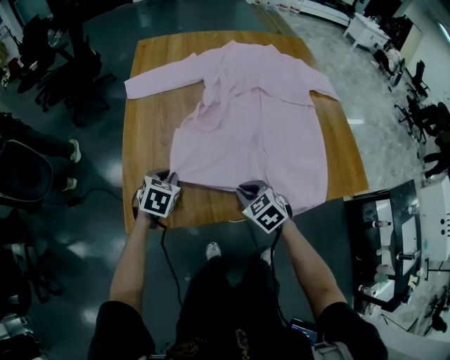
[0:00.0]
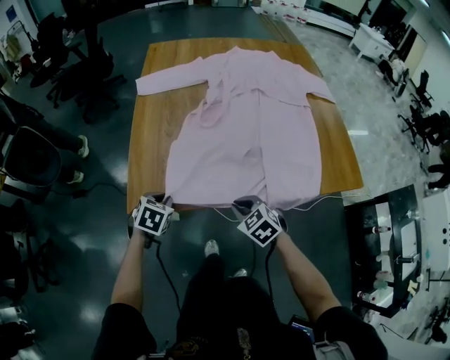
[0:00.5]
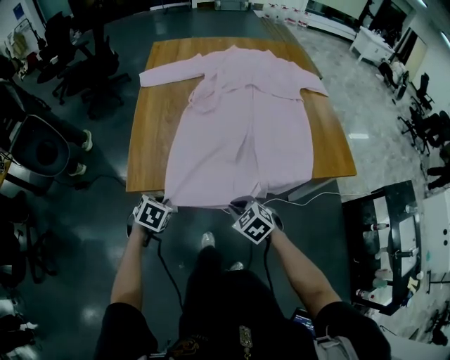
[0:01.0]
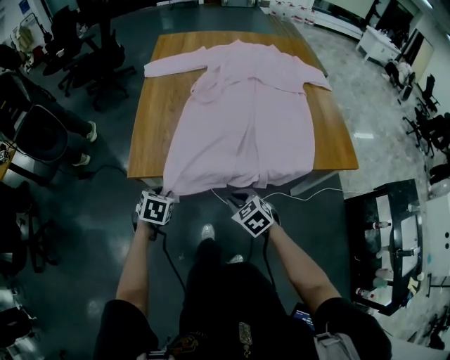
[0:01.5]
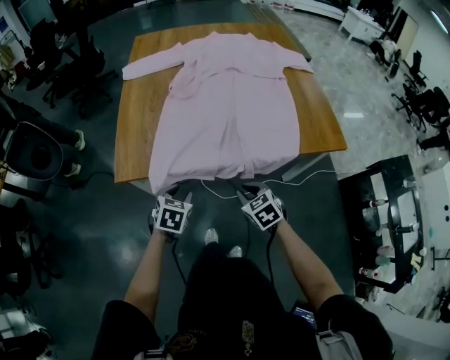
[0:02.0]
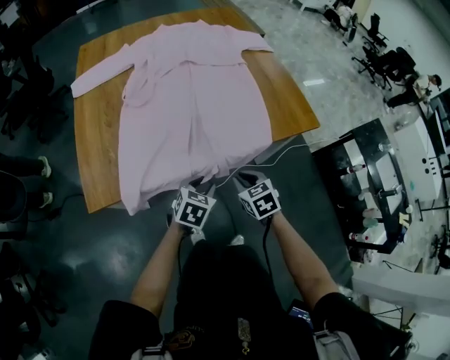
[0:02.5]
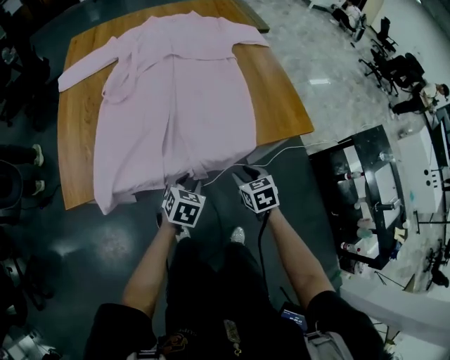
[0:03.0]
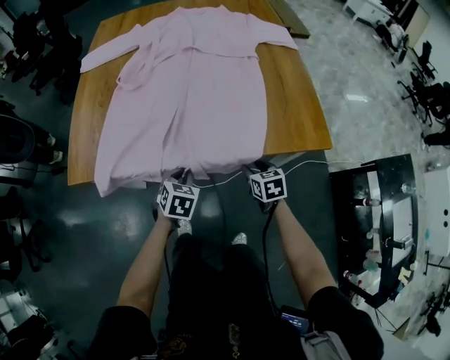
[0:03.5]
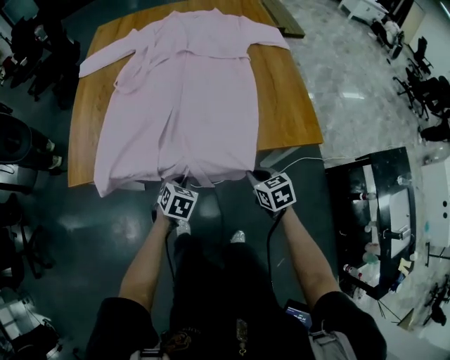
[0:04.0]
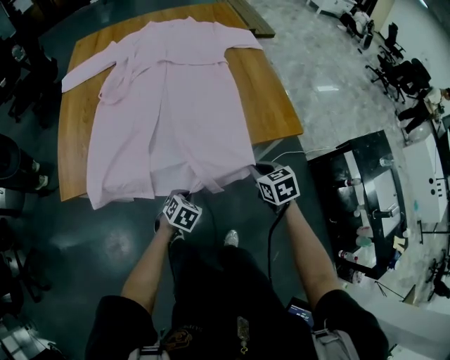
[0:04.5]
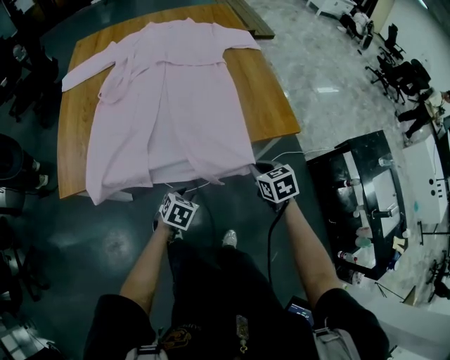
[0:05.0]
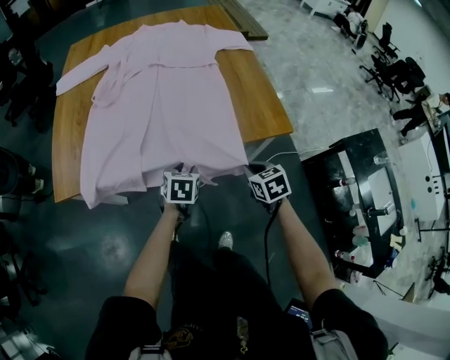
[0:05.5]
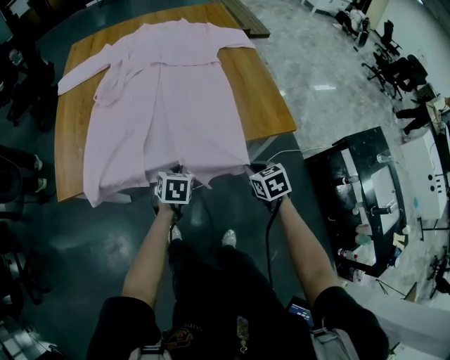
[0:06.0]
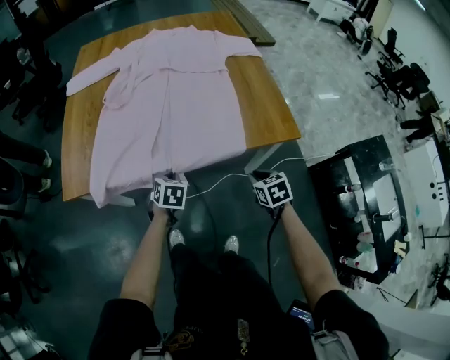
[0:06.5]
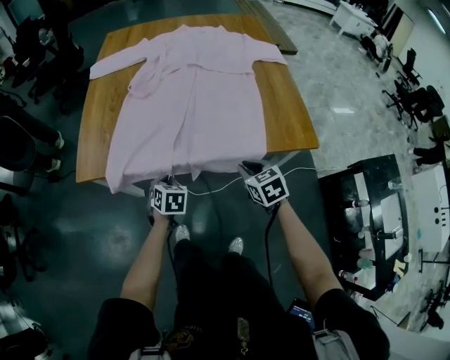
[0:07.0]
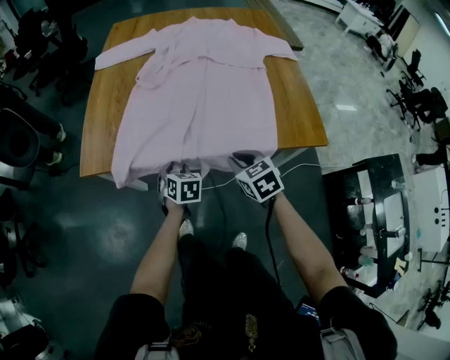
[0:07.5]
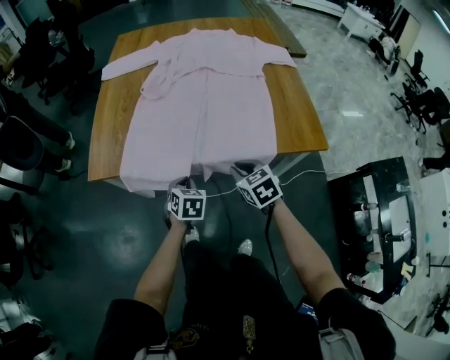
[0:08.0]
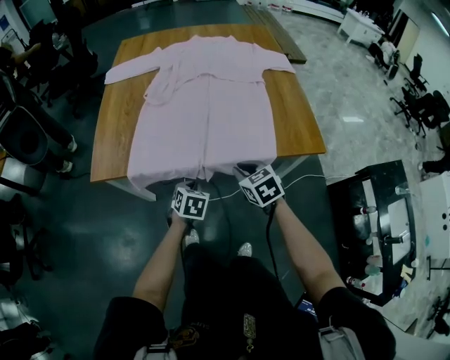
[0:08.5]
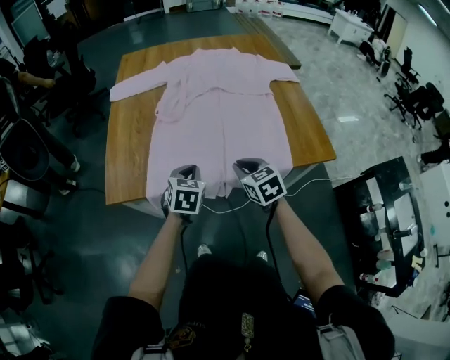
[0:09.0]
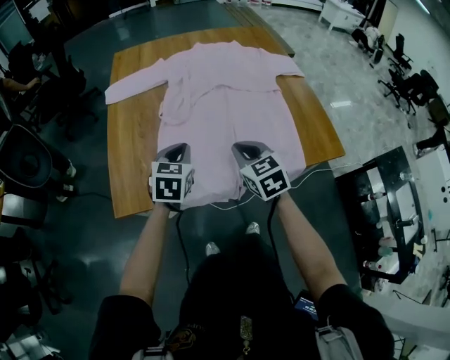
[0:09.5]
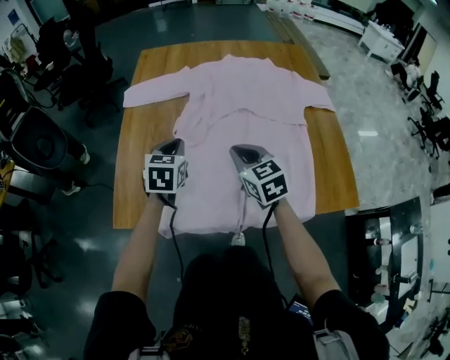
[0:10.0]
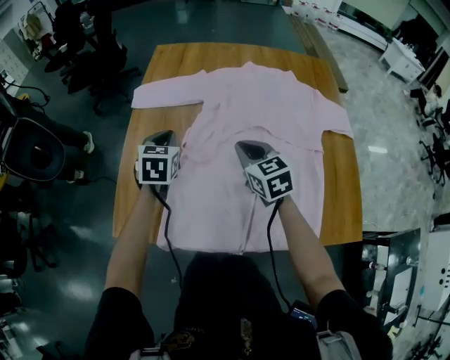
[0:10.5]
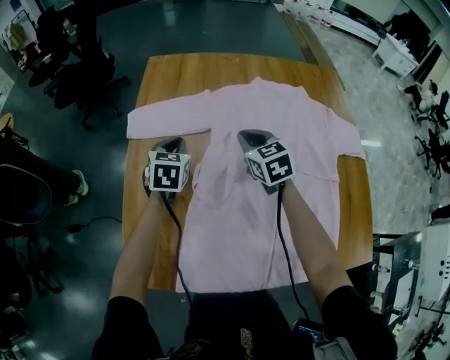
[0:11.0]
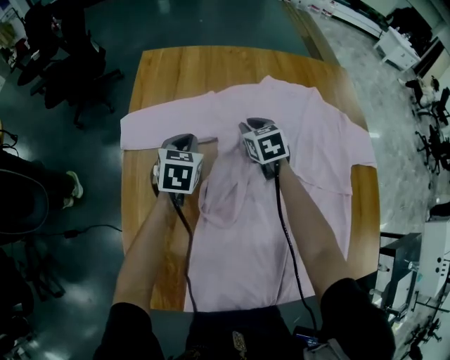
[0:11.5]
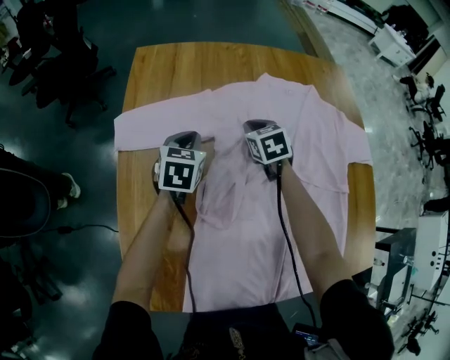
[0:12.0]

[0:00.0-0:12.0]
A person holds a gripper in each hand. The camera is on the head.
0:00.0 to 0:02.0: Both grippers move backward, about 25 cm. The left gripper opens up.
0:02.0 to 0:04.0: The right gripper shifts by roughly 25 cm, and opens, then closes again. Meanwhile the left gripper moves roughly 25 cm, and closes.
0:04.0 to 0:06.0: The right gripper travels to the right by roughly 5 cm, while the left gripper moves about 5 cm backward and comes back, and opens, then closes again.
0:06.0 to 0:08.0: Both grippers travel together to the left, roughly 15 cm. The left gripper opens, then closes once more.
0:08.0 to 0:10.0: The two grippers go about 30 cm forward and upward.
0:10.0 to 0:12.0: The grippers both shift forward by some 35 cm. The right gripper changes its angle by approximately 20 degrees.

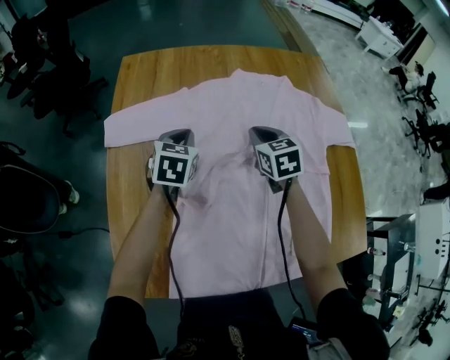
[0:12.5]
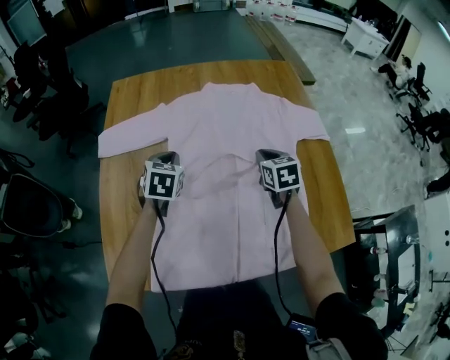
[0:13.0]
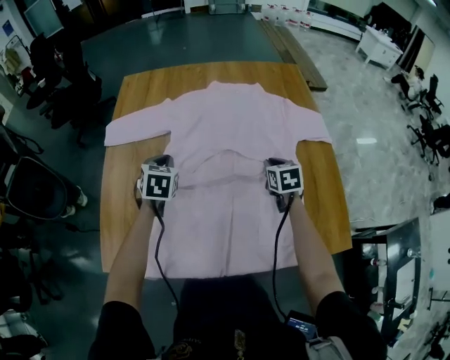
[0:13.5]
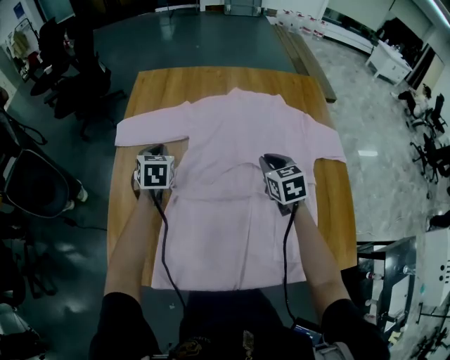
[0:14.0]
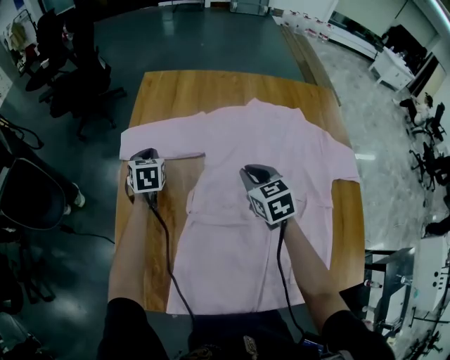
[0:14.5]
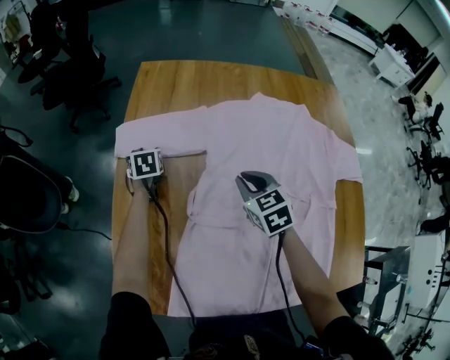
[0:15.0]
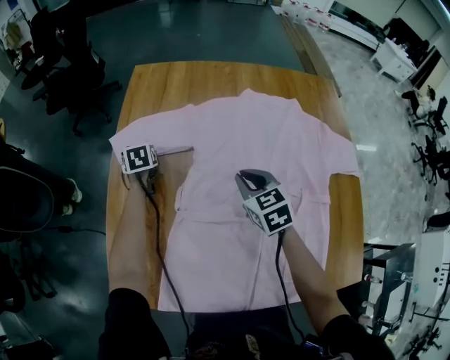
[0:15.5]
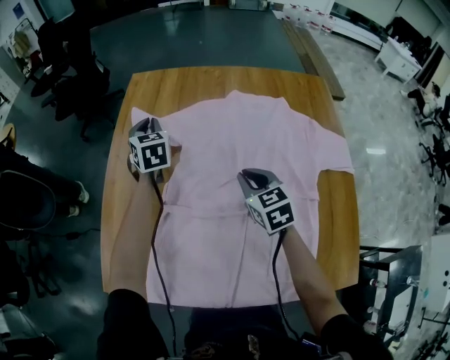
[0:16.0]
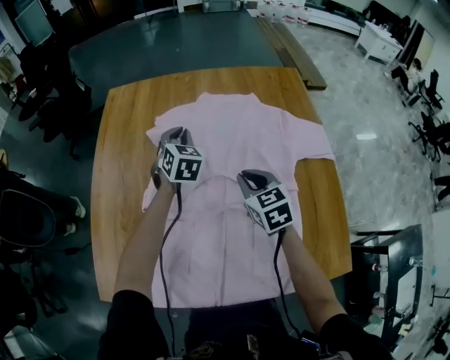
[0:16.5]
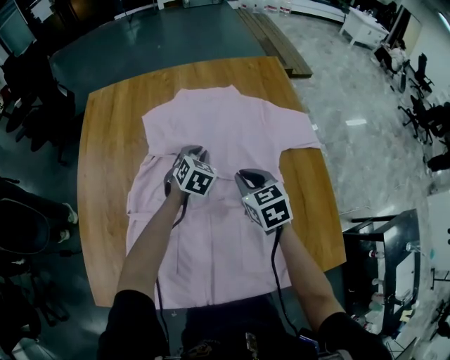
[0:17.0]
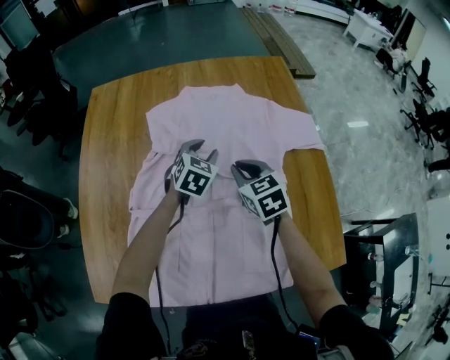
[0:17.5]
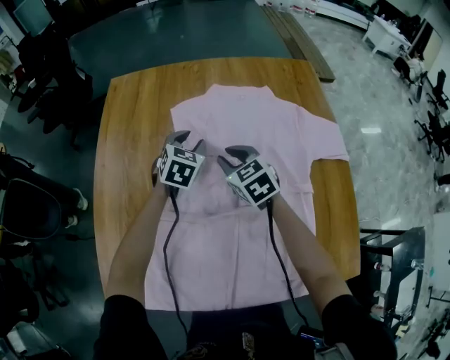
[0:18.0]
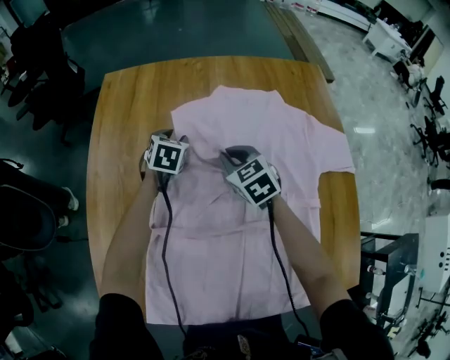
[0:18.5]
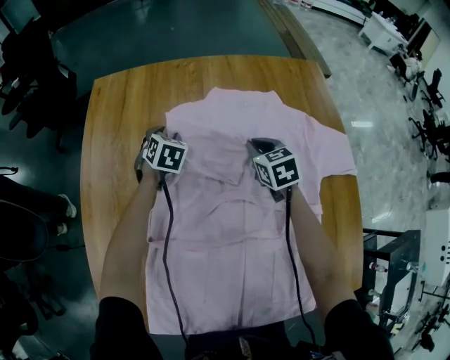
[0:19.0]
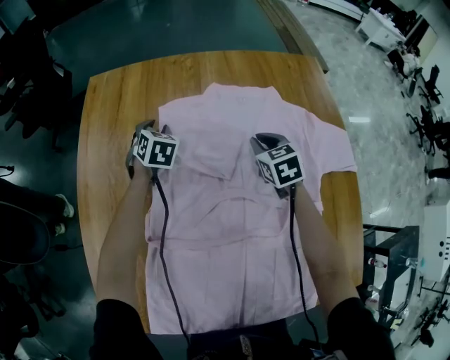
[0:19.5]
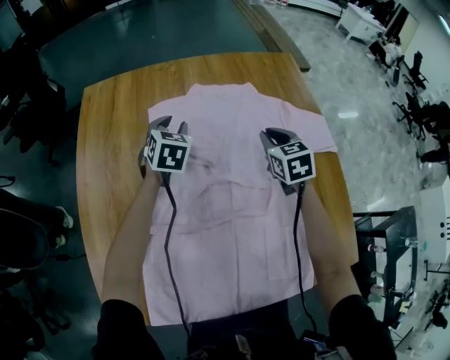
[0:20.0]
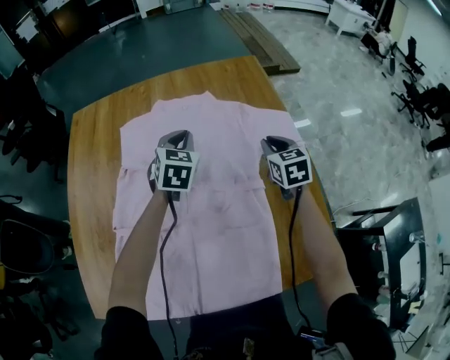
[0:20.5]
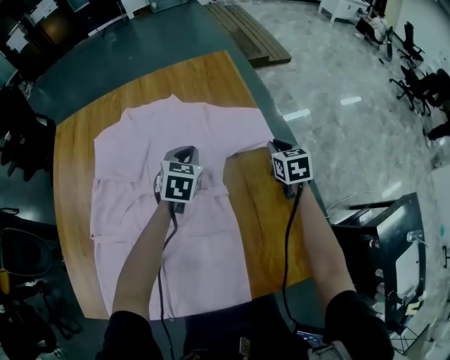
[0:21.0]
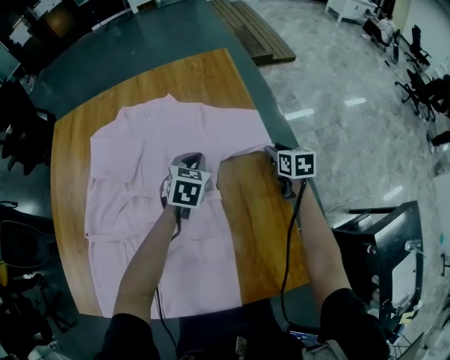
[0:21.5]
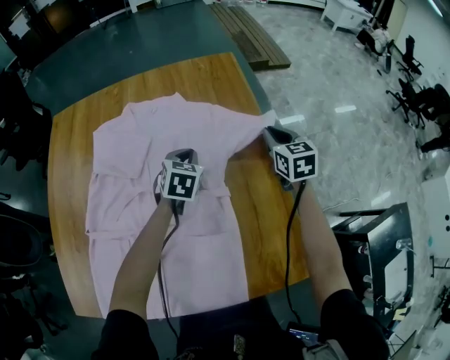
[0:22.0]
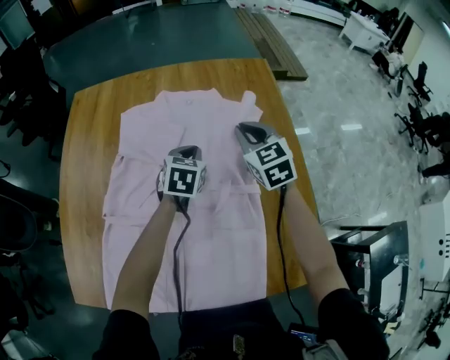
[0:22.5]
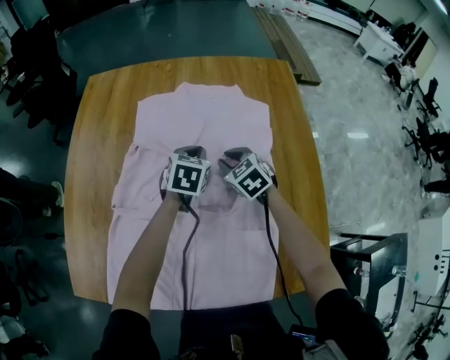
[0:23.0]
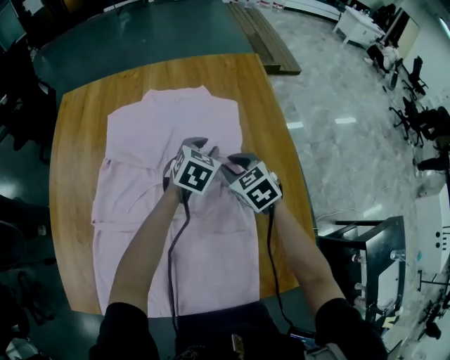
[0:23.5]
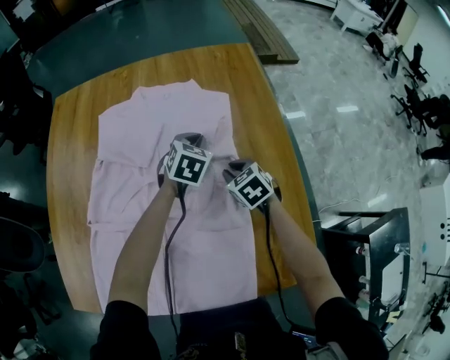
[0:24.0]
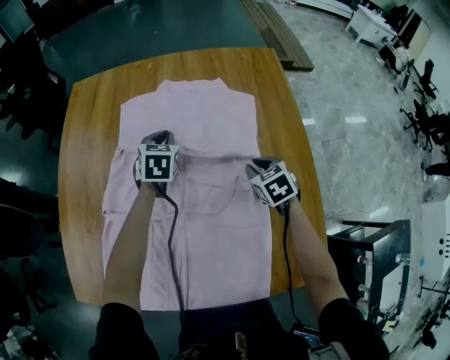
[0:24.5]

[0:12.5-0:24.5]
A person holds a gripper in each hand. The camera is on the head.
0:12.5 to 0:14.5: The left gripper is displaced to the left by approximately 15 cm, and swivels roughly 20 degrees; the right gripper moves approximately 15 cm to the right and comes back.
0:14.5 to 0:16.5: The right gripper travels to the right and backward by some 15 cm. The left gripper moves to the right, some 30 cm, swivels roughly 30 degrees, and opens, then closes again.
0:16.5 to 0:18.5: The left gripper heads downward, forward and to the left, covering approximately 15 cm, swivels approximately 20 degrees, and opens up. The right gripper goes roughly 20 cm forward, to the left and downward.
0:18.5 to 0:20.5: The right gripper is displaced to the right by some 35 cm, and swivels about 30 degrees; the left gripper goes about 30 cm to the right, upward and backward, and closes its fingers.
0:20.5 to 0:22.5: The left gripper heads downward, covering approximately 5 cm, and travels to the right and back again, about 20 cm each way, while the right gripper is displaced upward by approximately 5 cm, reaches approximately 20 cm to the right, then returns, changes its angle by some 20 degrees, and opens, then closes again.
0:22.5 to 0:24.5: The right gripper travels downward and backward by about 15 cm, and changes its angle by about 30 degrees. Meanwhile the left gripper goes left and right, about 20 cm each way, reversing 2 times, and opens and closes again.

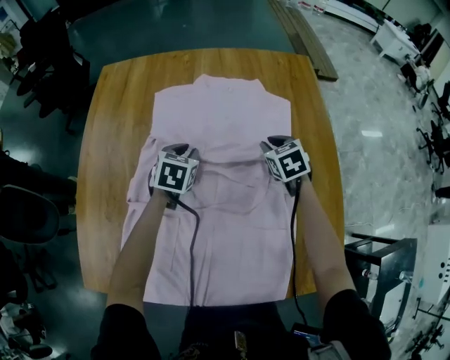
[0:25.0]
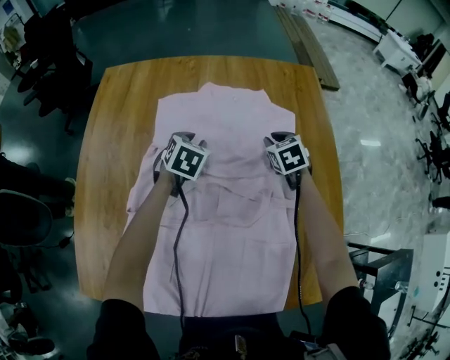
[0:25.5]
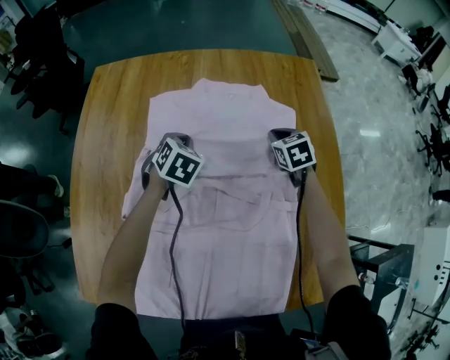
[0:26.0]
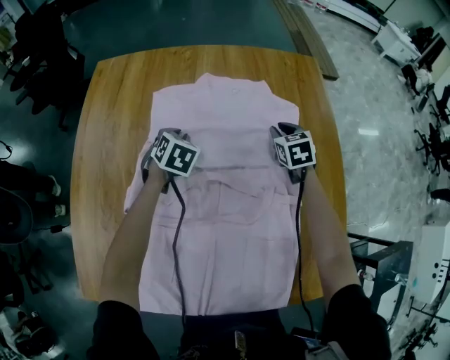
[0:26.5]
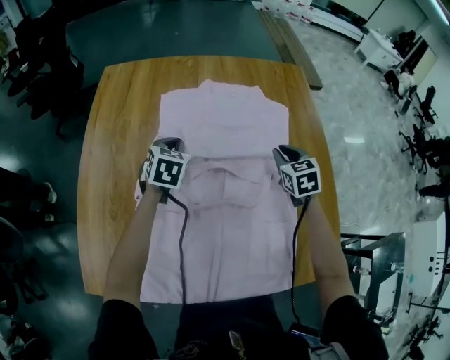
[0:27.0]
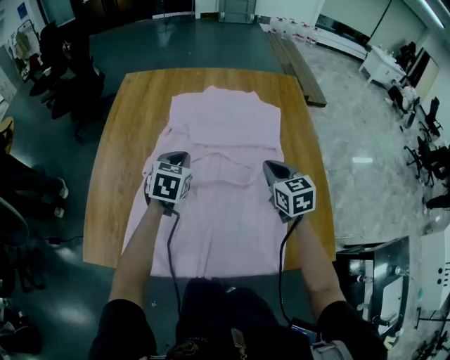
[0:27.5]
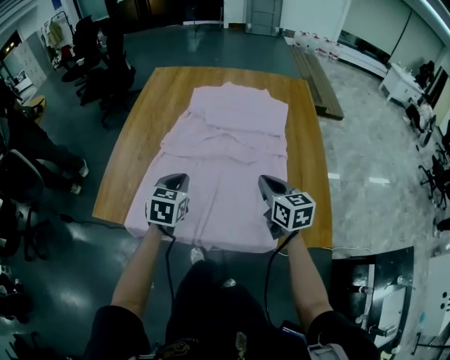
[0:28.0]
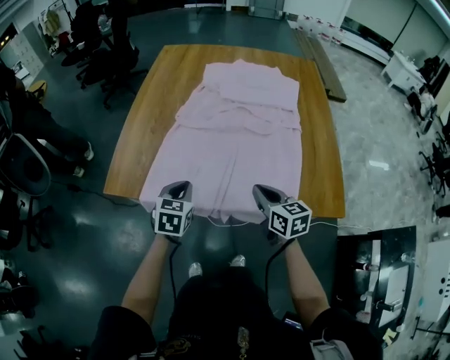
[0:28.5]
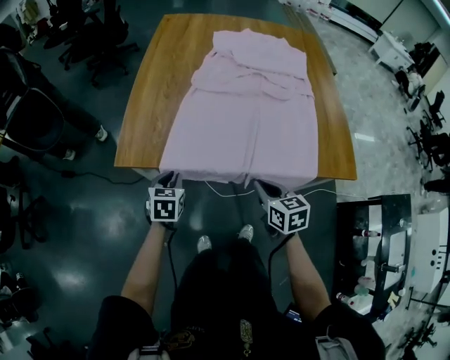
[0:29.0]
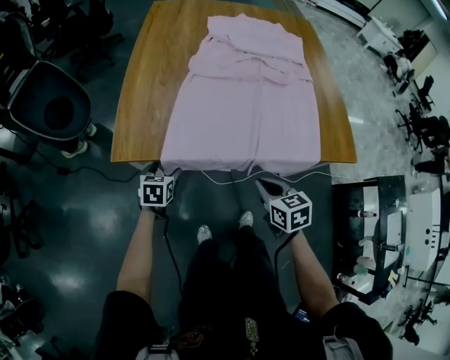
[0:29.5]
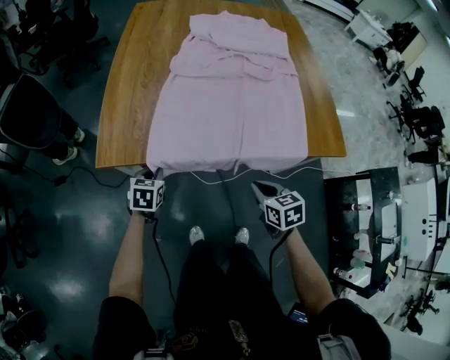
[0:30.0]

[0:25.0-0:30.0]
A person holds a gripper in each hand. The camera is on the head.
0:25.0 to 0:27.5: Both grippers move backward and upward, approximately 20 cm. The right gripper turns by some 20 degrees.
0:27.5 to 0:30.0: The two grippers travel together, backward and to the left, some 50 cm. The left gripper shifts about 20 cm downward, and opens, then closes once more; the right gripper rotates approximately 20 degrees.
